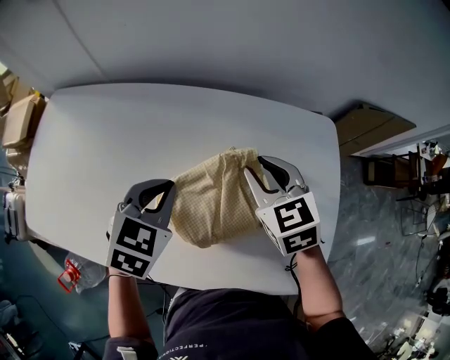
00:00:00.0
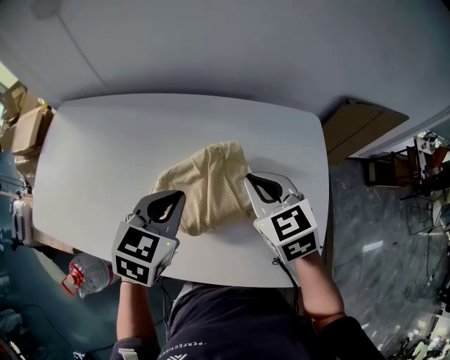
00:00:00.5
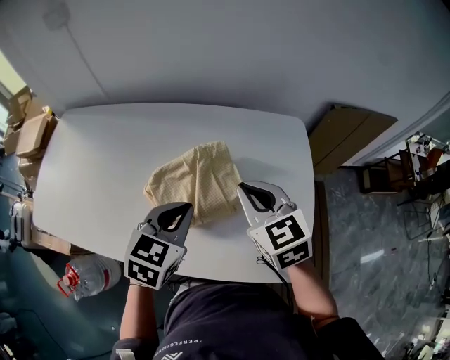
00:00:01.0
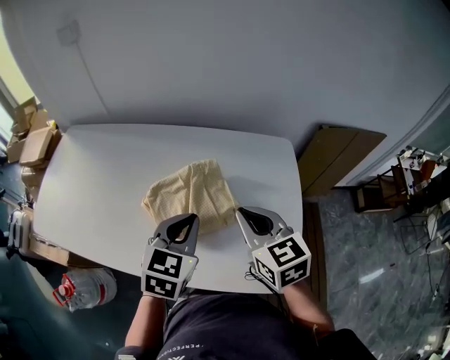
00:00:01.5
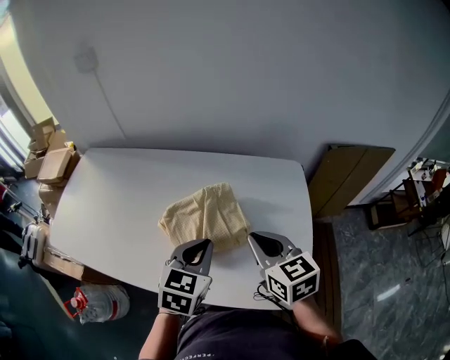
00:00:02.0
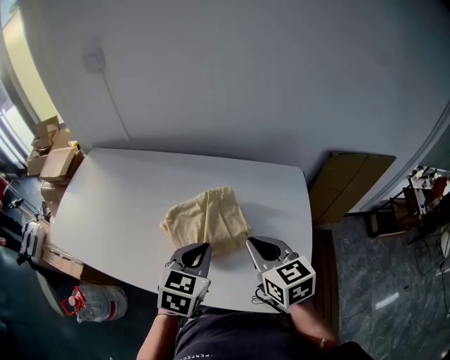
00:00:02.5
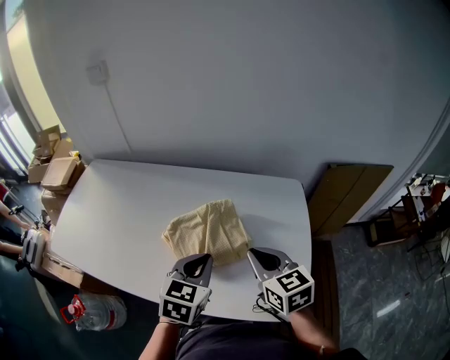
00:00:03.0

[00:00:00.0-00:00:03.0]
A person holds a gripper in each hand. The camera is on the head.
00:00:00.0 to 00:00:01.5: The right gripper heads backward, to the right and upward, covering approximately 20 cm, and closes up, while the left gripper travels to the right, backward and upward by roughly 20 cm.
00:00:01.5 to 00:00:03.0: The grippers move only a little.

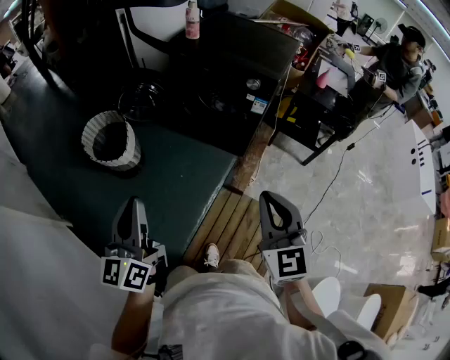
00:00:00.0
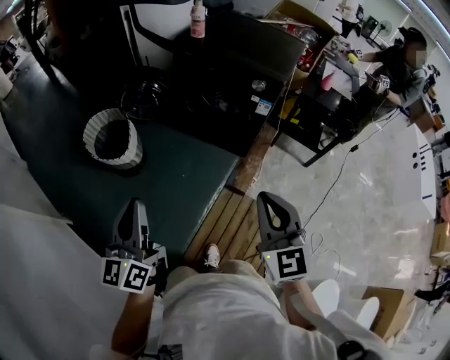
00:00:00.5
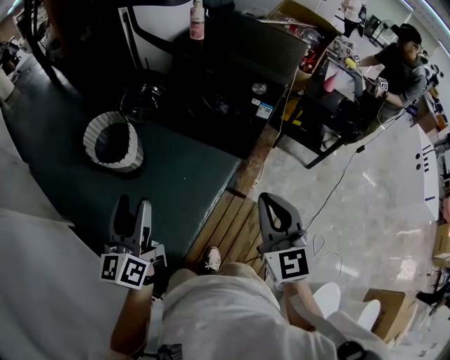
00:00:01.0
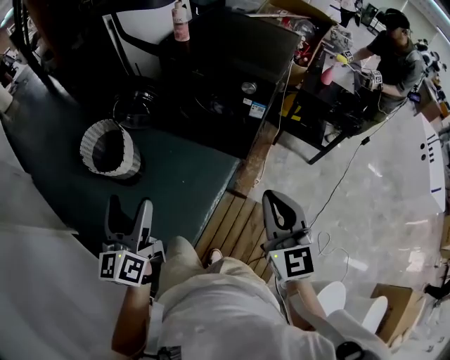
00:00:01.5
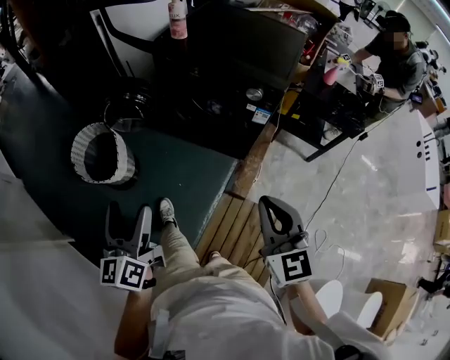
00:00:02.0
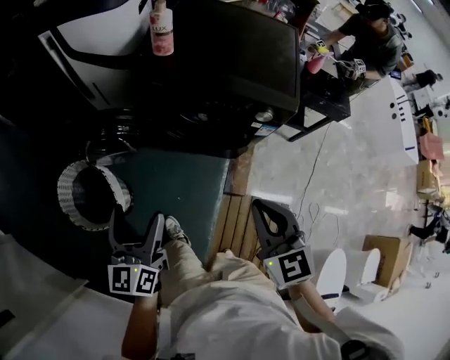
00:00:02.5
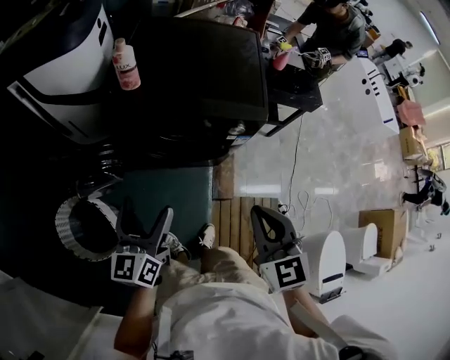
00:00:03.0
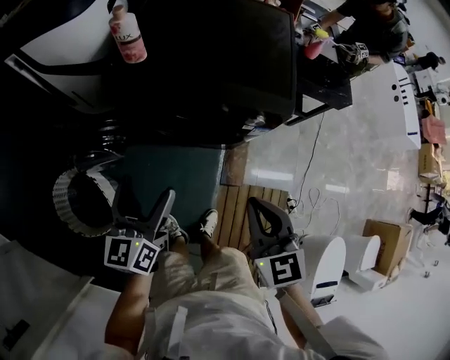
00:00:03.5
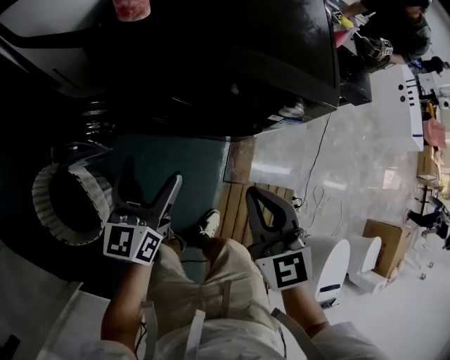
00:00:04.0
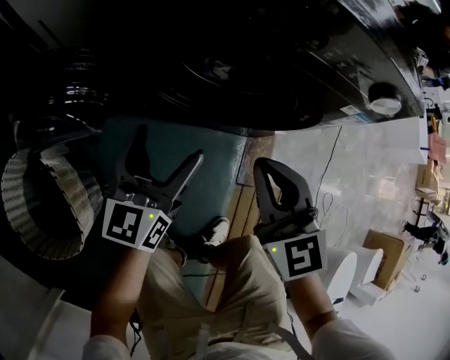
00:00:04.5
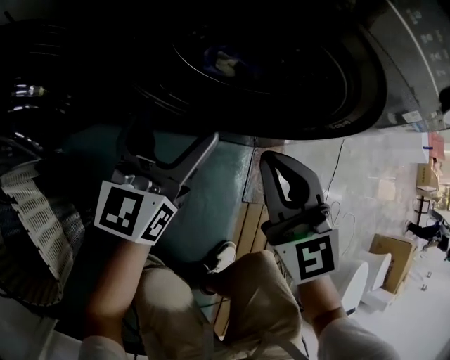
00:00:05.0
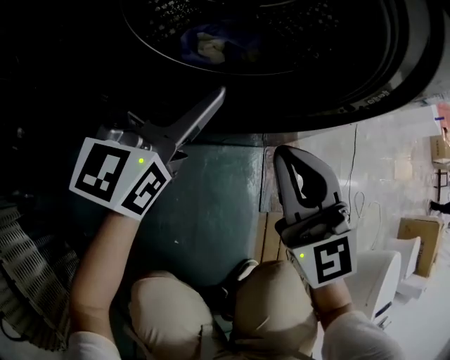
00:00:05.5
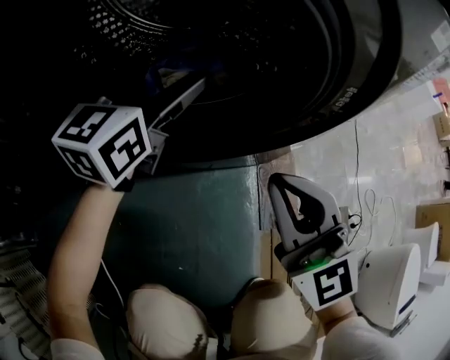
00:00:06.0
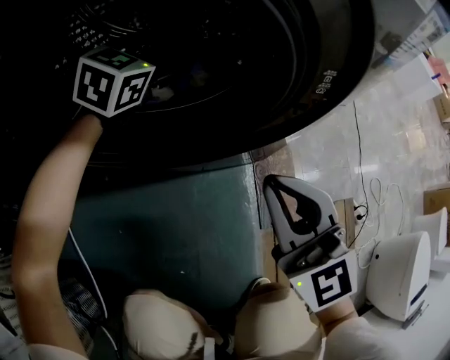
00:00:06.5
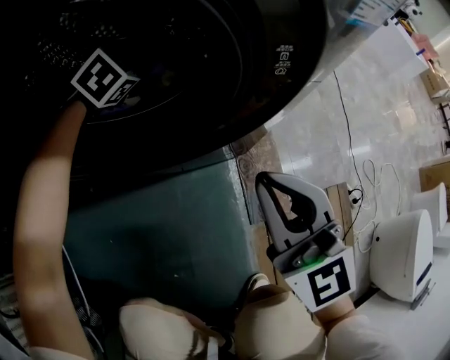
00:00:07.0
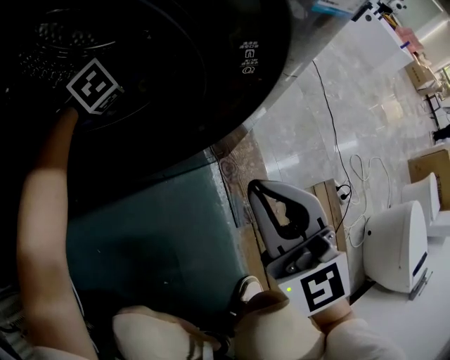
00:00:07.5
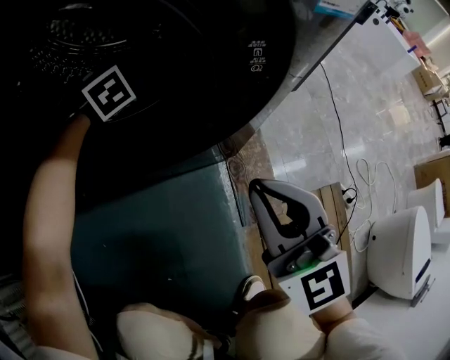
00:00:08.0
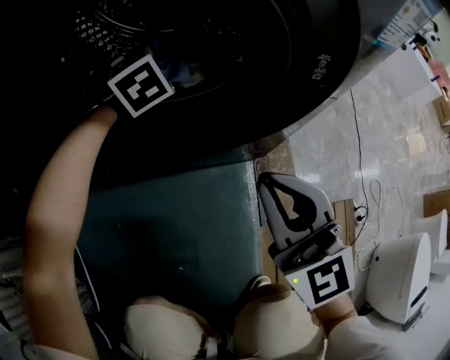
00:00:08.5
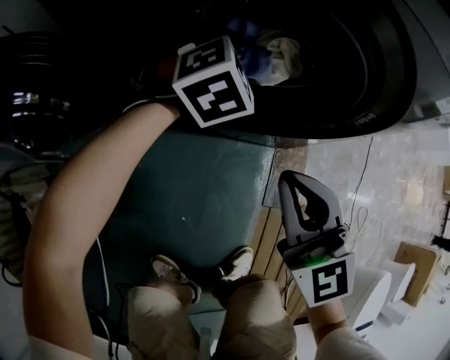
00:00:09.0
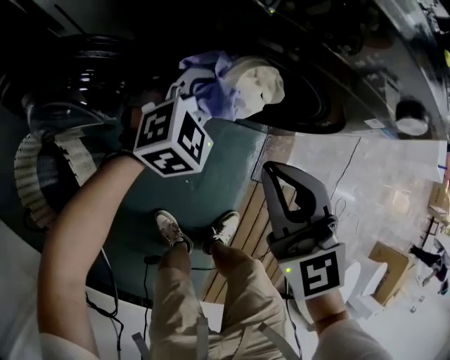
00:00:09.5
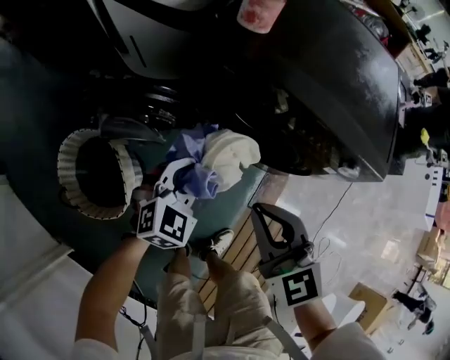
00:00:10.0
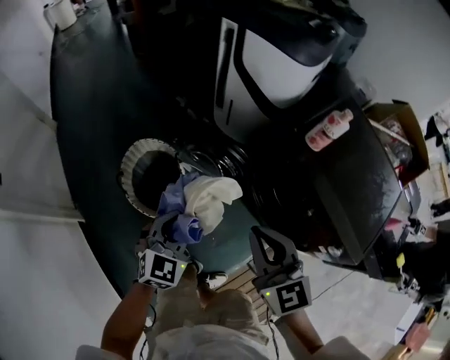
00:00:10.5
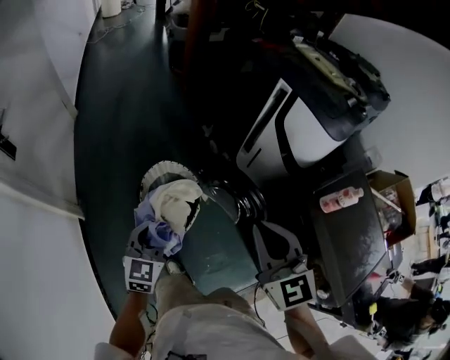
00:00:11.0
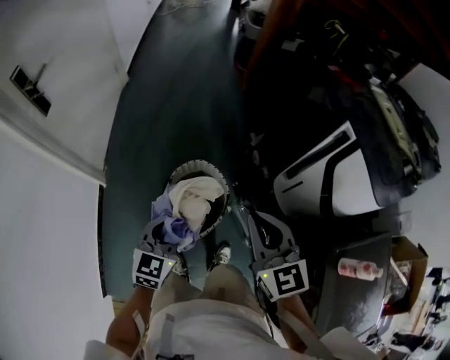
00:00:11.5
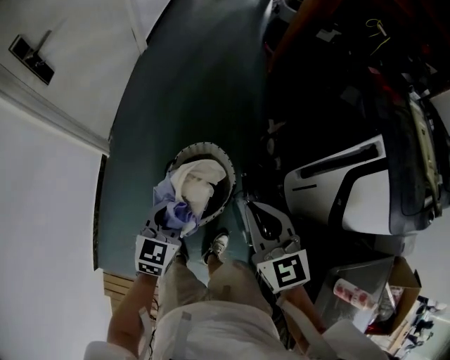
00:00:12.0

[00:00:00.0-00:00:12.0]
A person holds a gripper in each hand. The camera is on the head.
00:00:00.0 to 00:00:02.0: The two grippers go some 15 cm forward. The left gripper opens its fingers.
00:00:02.0 to 00:00:04.0: The right gripper moves some 35 cm. Meanwhile the left gripper changes place by roughly 40 cm, and turns by approximately 30 degrees.
00:00:04.0 to 00:00:06.0: The right gripper is displaced downward by approximately 40 cm, and turns by roughly 20 degrees. Meanwhile the left gripper goes about 40 cm downward and forward, and swivels approximately 30 degrees.
00:00:06.0 to 00:00:08.0: The left gripper goes approximately 20 cm downward and forward, tilts its fingers roughly 50 degrees downward, and closes, while the right gripper shifts roughly 10 cm to the right.
00:00:08.0 to 00:00:10.0: The right gripper heads upward and to the left, covering approximately 50 cm, and turns by some 40 degrees, while the left gripper is displaced upward, backward and to the left by approximately 60 cm, and twists approximately 40 degrees counterclockwise, seen from behind.
00:00:10.0 to 00:00:12.0: The two grippers travel together, roughly 50 cm. The left gripper swivels roughly 90 degrees, while the right gripper turns by some 60 degrees.

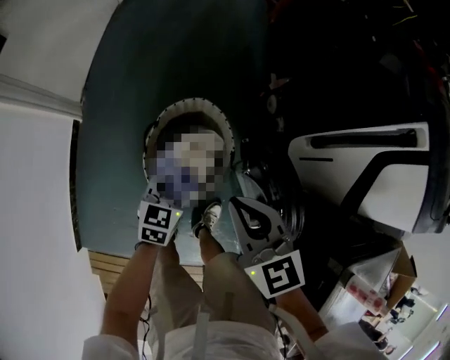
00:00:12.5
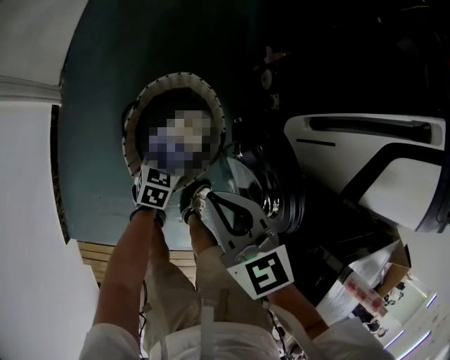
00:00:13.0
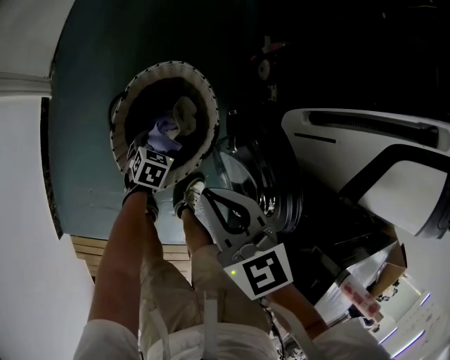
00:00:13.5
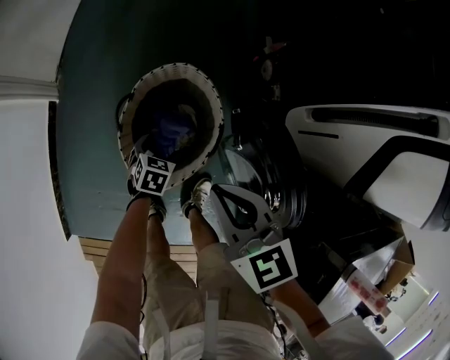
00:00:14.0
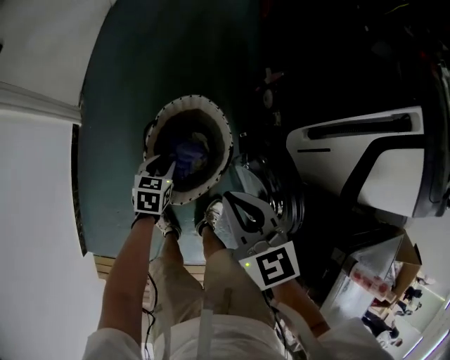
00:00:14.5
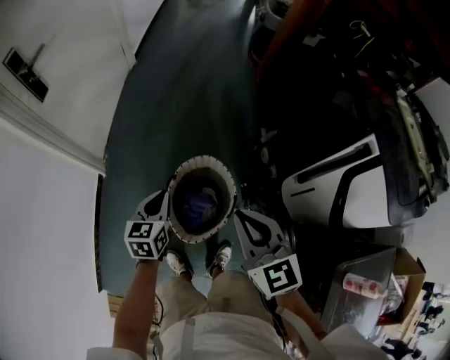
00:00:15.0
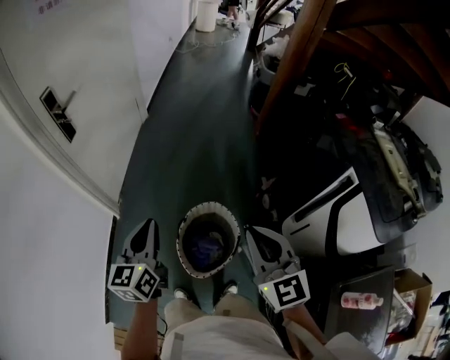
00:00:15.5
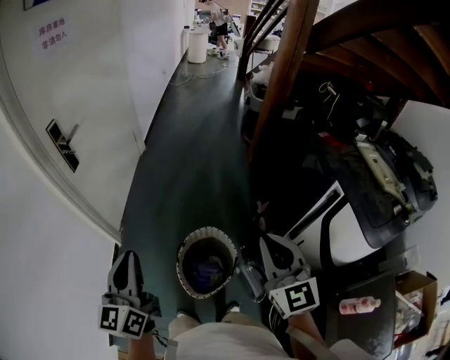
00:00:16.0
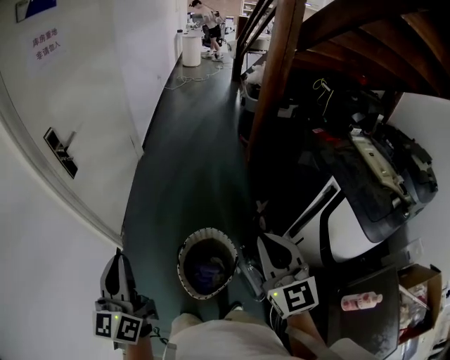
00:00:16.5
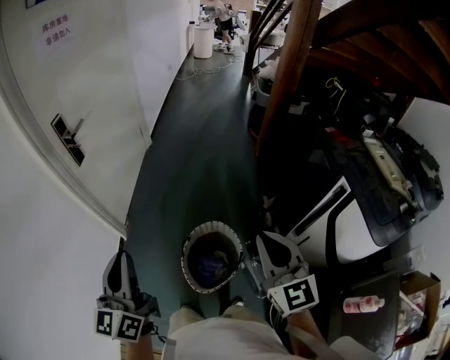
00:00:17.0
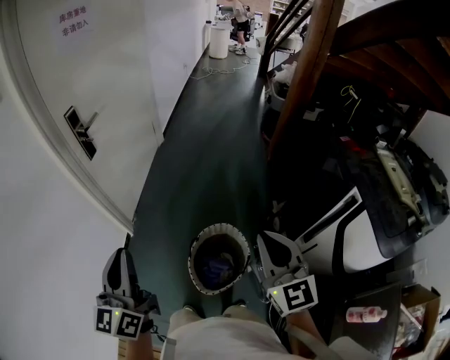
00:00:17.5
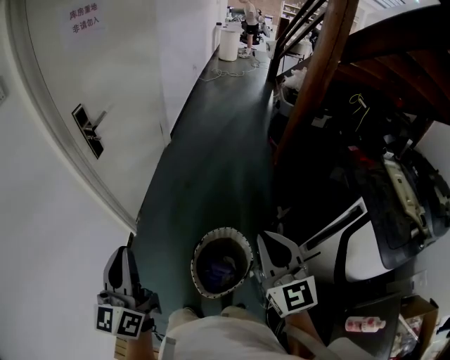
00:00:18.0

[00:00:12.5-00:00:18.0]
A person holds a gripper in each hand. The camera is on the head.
00:00:12.5 to 00:00:14.5: The right gripper moves some 10 cm downward and comes back. Meanwhile the left gripper goes downward and returns, about 20 cm each way, and opens, then closes once more.
00:00:14.5 to 00:00:16.0: The left gripper moves upward, approximately 60 cm, and angles its fingers upward, by roughly 50 degrees, while the right gripper goes approximately 35 cm upward, and turns by roughly 30 degrees.
00:00:16.0 to 00:00:18.0: Both grippers travel together to the left, approximately 5 cm.

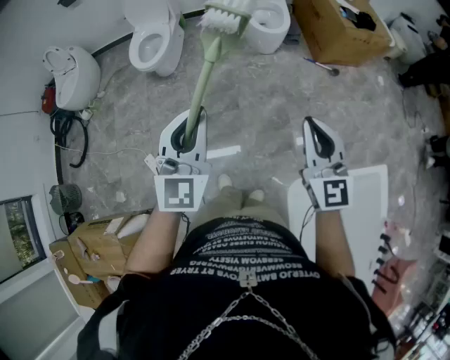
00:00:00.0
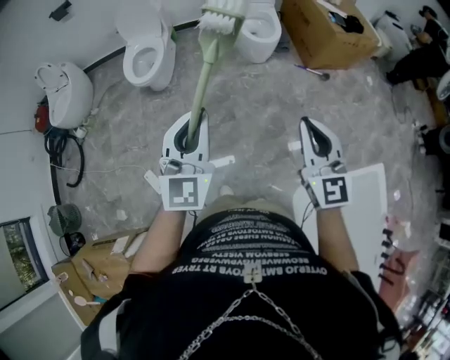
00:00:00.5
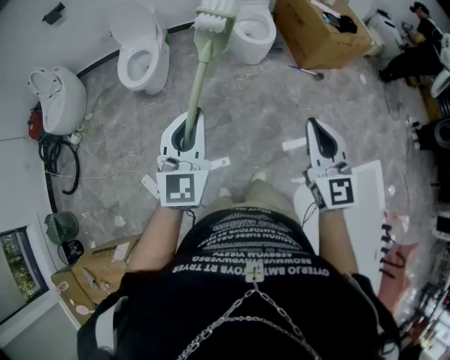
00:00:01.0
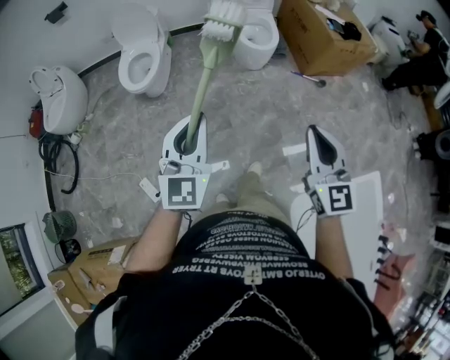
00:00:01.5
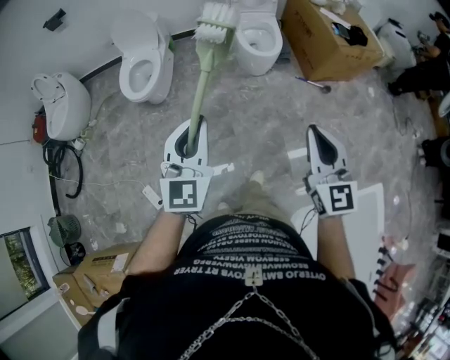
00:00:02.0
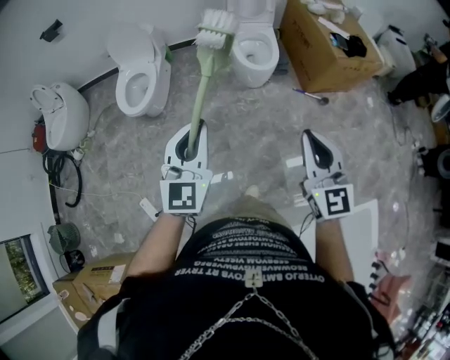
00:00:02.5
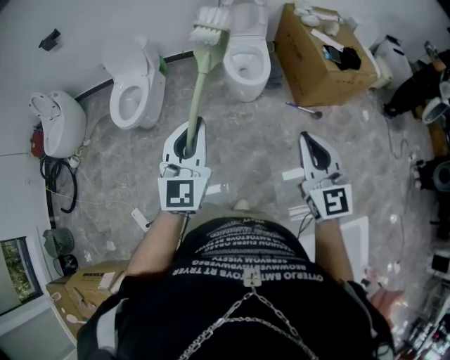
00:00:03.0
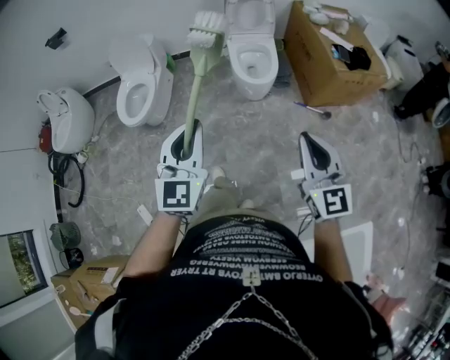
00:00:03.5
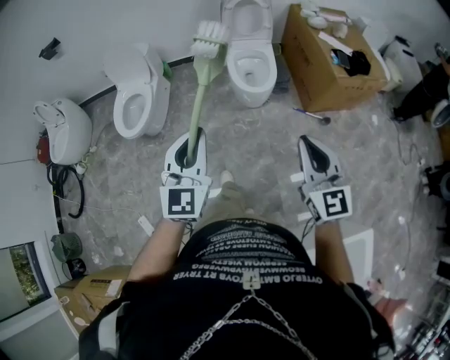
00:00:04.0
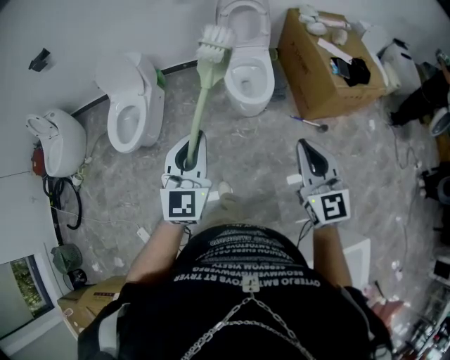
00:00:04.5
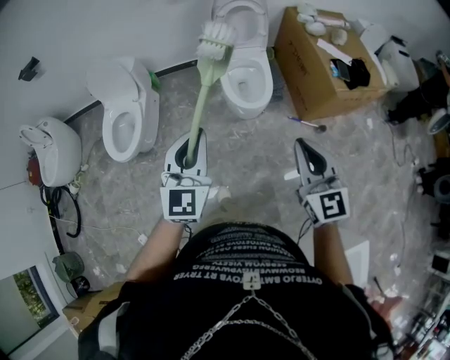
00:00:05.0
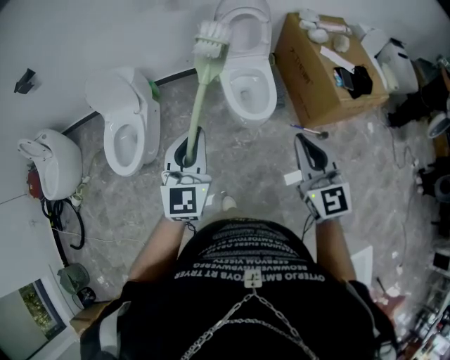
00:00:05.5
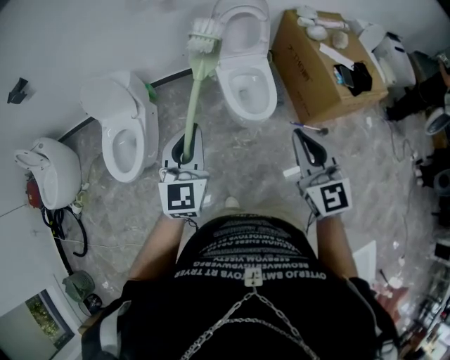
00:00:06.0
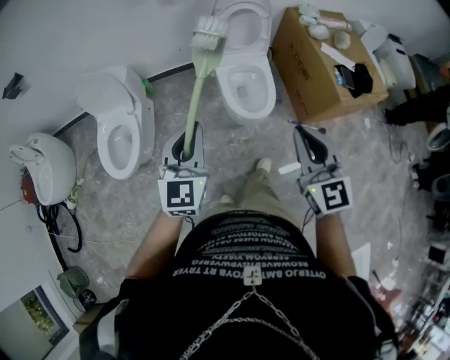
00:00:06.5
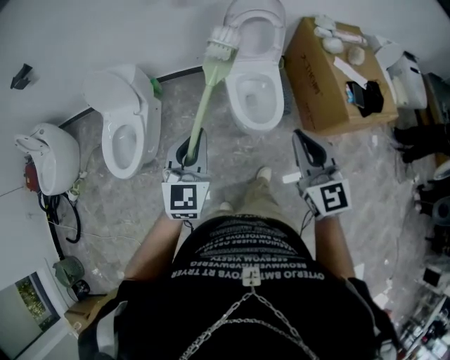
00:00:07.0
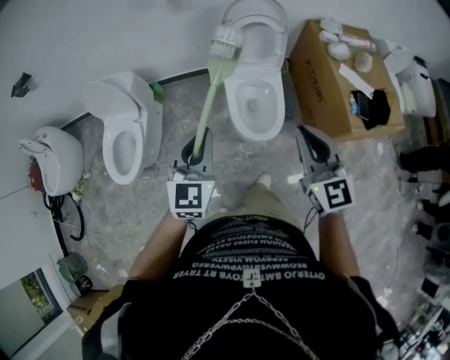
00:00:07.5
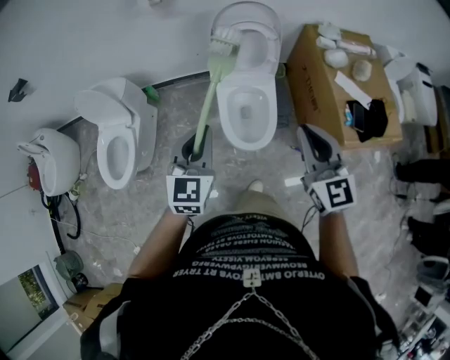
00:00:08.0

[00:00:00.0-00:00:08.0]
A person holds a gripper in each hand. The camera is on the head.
00:00:00.0 to 00:00:02.0: Both grippers travel together forward, roughly 15 cm.
00:00:02.0 to 00:00:04.0: Both grippers travel together forward and to the right, approximately 25 cm.
00:00:04.0 to 00:00:06.0: Both grippers travel together forward, about 30 cm.
00:00:06.0 to 00:00:08.0: The two grippers go about 30 cm forward and to the right.
